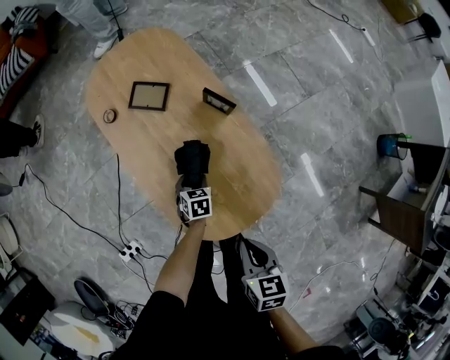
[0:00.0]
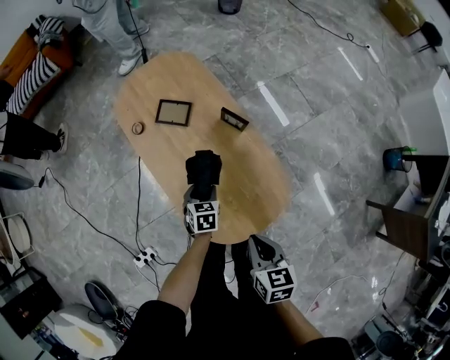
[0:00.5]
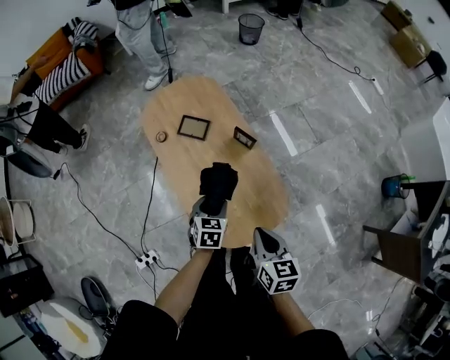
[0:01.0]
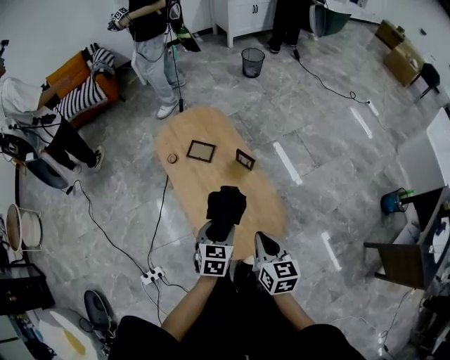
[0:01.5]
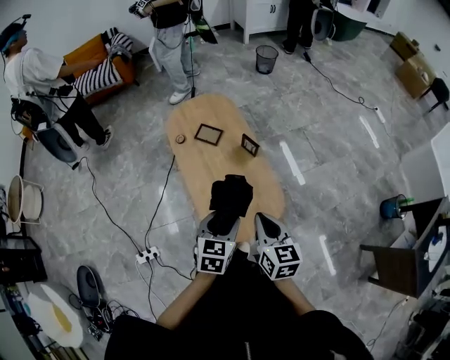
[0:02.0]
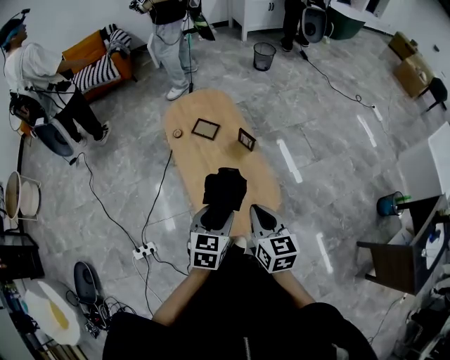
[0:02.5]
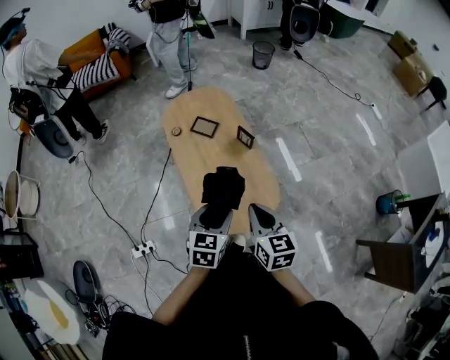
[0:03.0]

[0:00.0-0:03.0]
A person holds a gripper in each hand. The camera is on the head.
0:00.0 to 0:01.5: The right gripper shifts roughly 20 cm upward, and rotates approximately 20 degrees; the left gripper goes roughly 35 cm upward, and turns by roughly 20 degrees.
0:01.5 to 0:03.0: The left gripper travels backward and upward by roughly 10 cm, while the right gripper heads upward, covering approximately 5 cm.

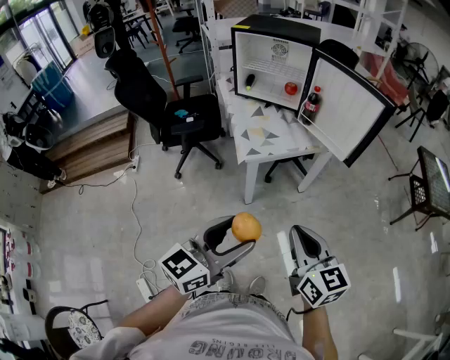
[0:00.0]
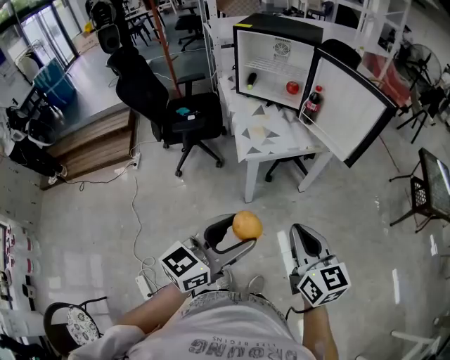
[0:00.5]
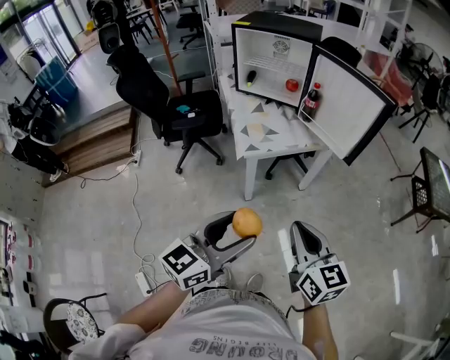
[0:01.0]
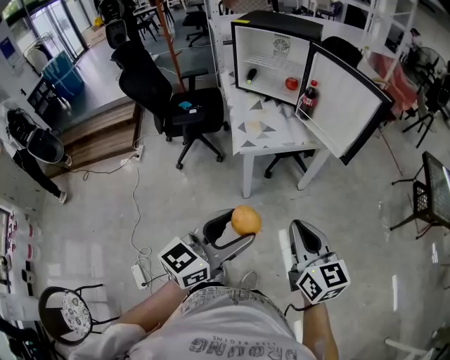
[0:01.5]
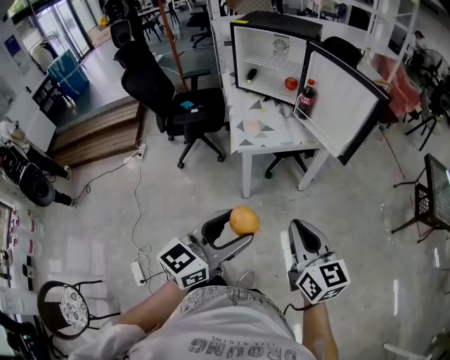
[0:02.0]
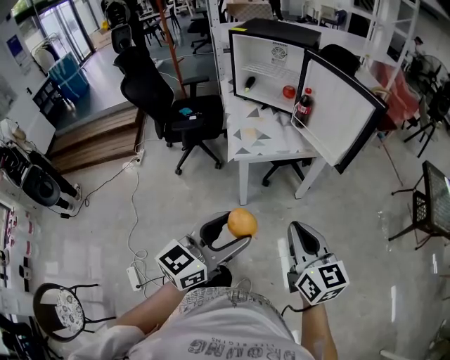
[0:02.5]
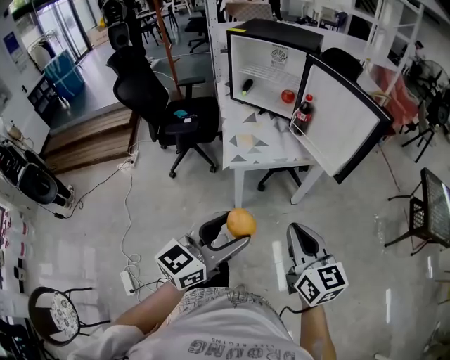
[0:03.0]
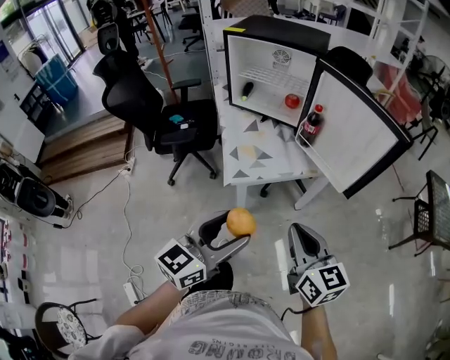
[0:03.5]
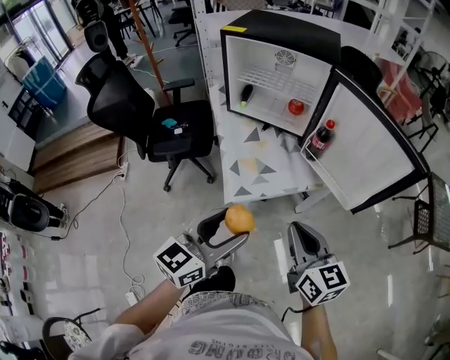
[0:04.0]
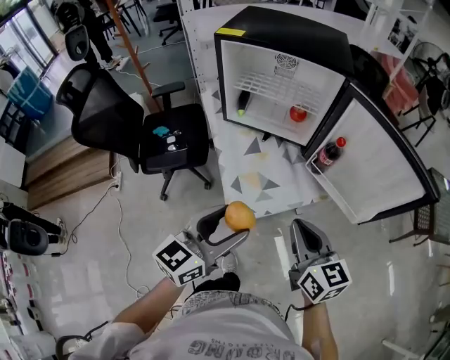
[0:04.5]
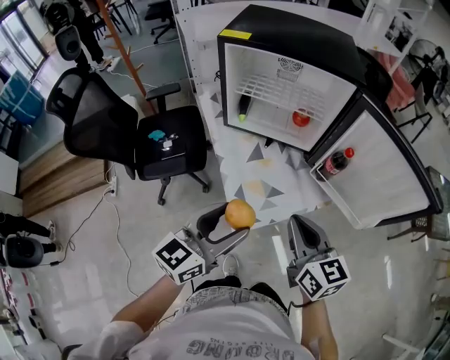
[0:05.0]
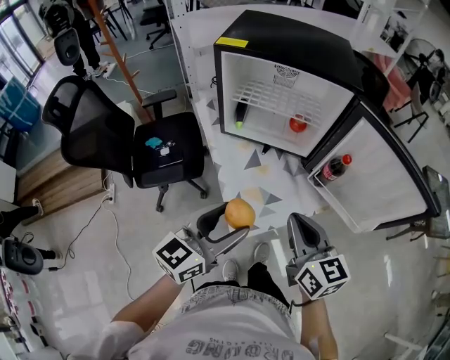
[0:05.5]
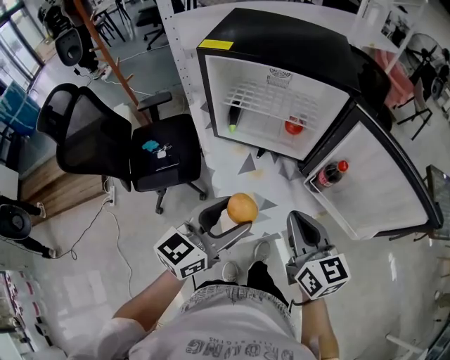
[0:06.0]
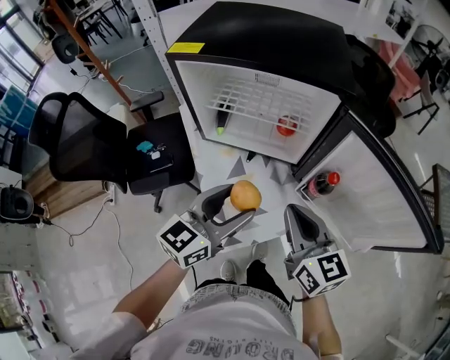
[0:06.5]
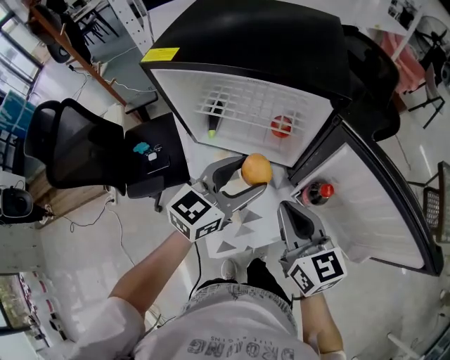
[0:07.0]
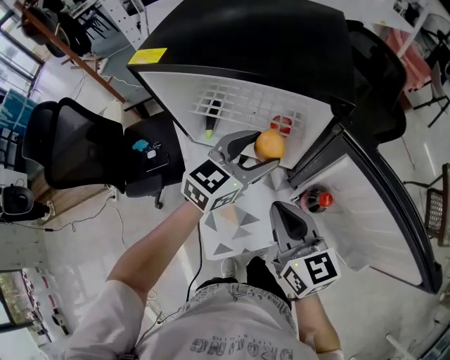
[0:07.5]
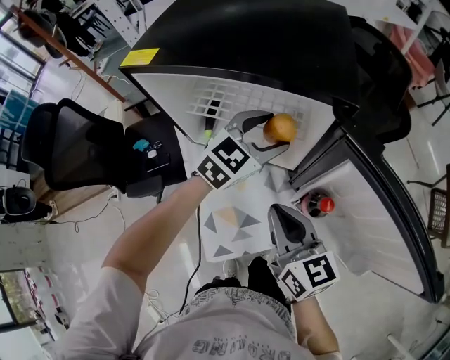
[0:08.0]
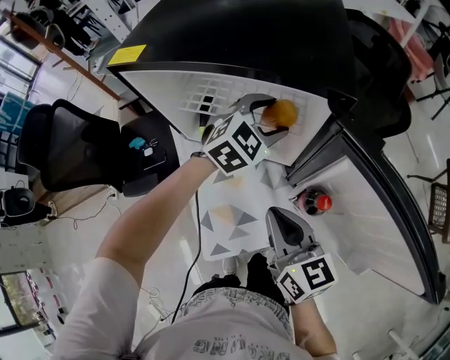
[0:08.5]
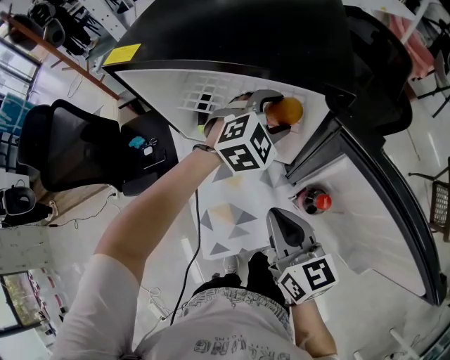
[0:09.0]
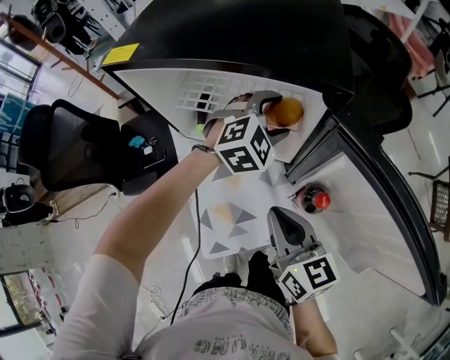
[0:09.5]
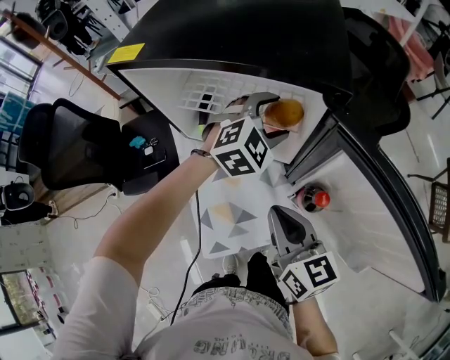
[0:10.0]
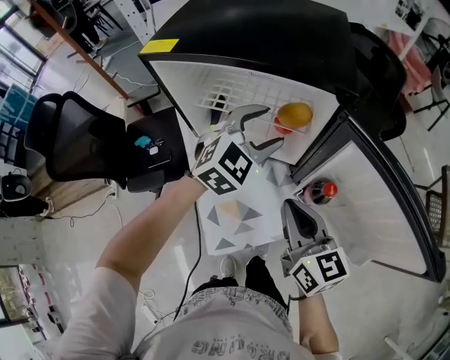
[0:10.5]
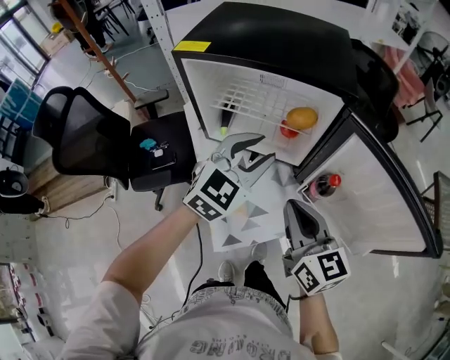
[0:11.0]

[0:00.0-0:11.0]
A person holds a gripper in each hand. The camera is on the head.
0:00.0 to 0:02.0: Both grippers move to the right, some 10 cm.
0:02.0 to 0:03.5: Both grippers move forward, approximately 15 cm.
0:03.5 to 0:05.5: The two grippers go some 30 cm forward and to the left.
0:05.5 to 0:07.5: The left gripper travels forward and to the right by about 35 cm; the right gripper shifts roughly 15 cm forward.
0:07.5 to 0:09.0: The left gripper travels forward and to the right by some 10 cm, and swivels roughly 40 degrees.
0:09.0 to 0:11.0: The left gripper shifts some 20 cm backward, to the left and upward, changes its angle by approximately 30 degrees, and closes; the right gripper heads upward, covering approximately 5 cm.

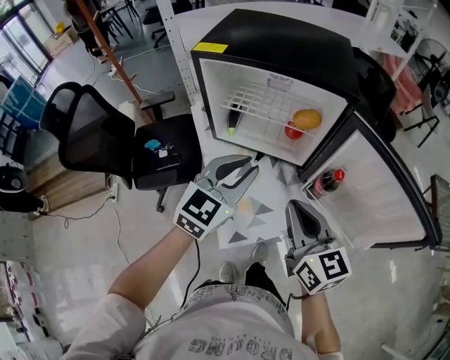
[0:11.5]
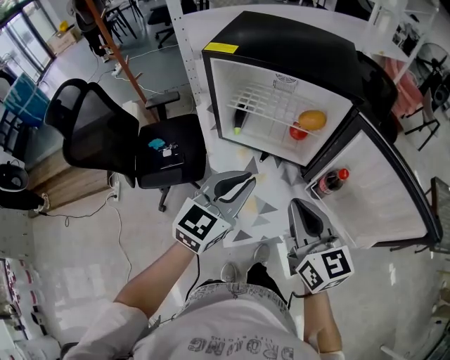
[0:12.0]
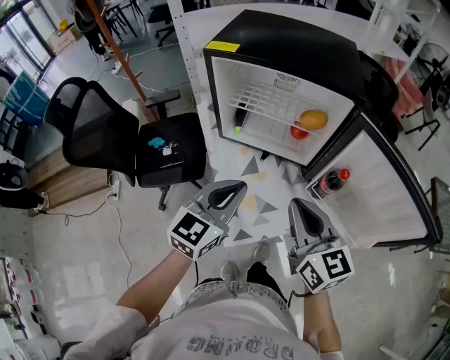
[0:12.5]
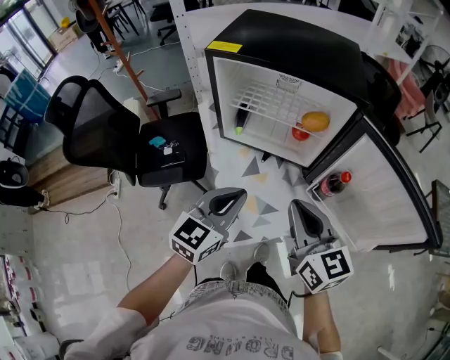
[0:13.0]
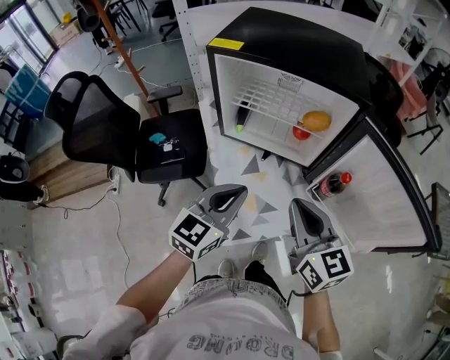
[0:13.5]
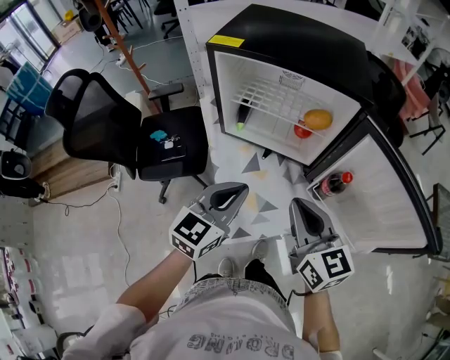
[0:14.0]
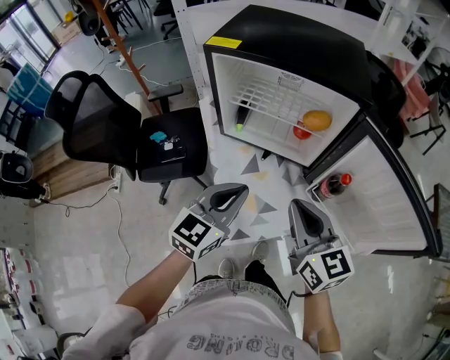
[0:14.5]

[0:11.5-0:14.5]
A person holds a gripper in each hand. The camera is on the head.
0:11.5 to 0:13.0: The left gripper moves backward, some 5 cm.
0:13.0 to 0:14.5: There are only small adjustments of the grippers.

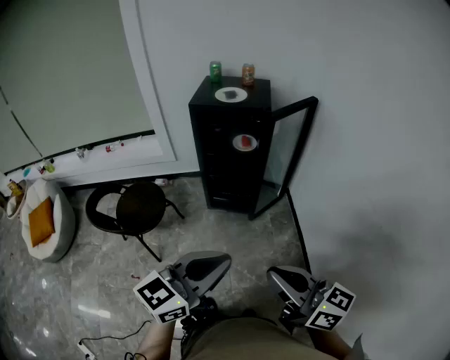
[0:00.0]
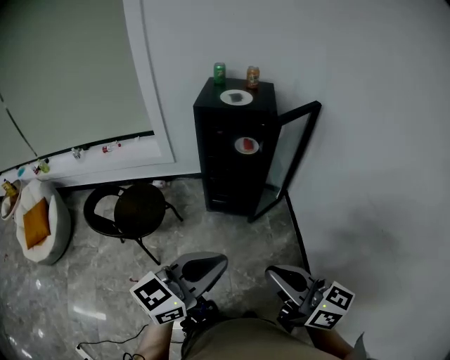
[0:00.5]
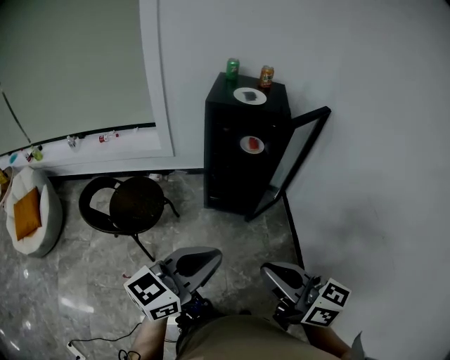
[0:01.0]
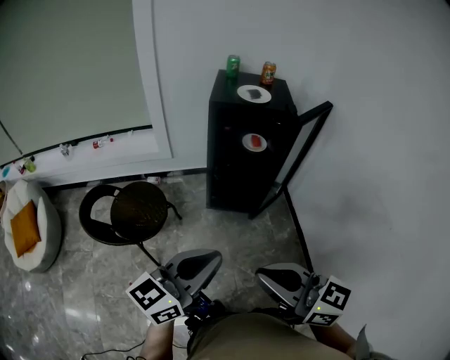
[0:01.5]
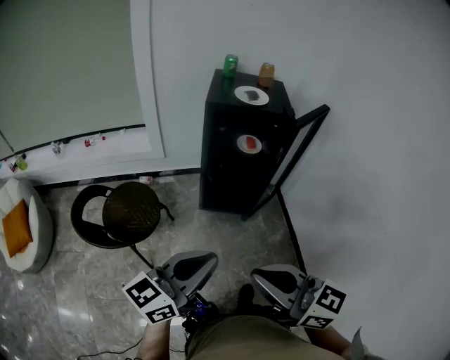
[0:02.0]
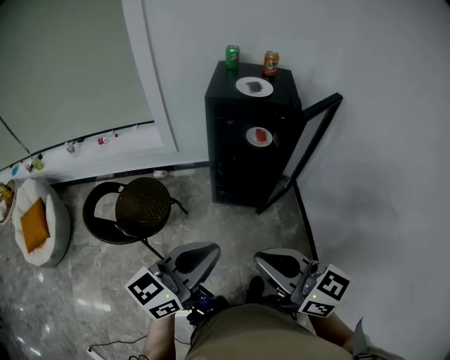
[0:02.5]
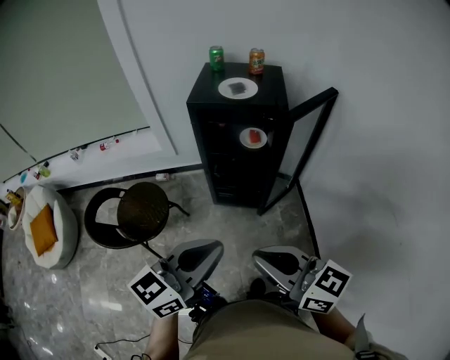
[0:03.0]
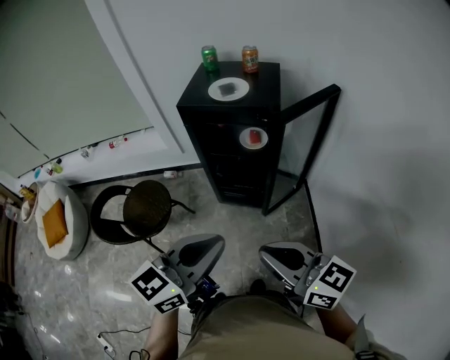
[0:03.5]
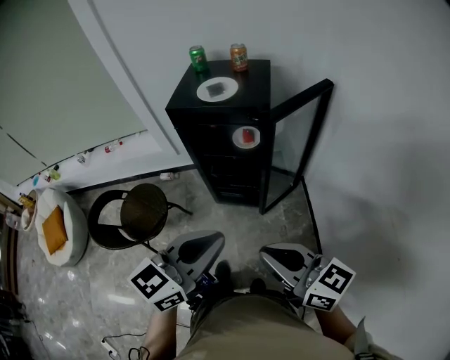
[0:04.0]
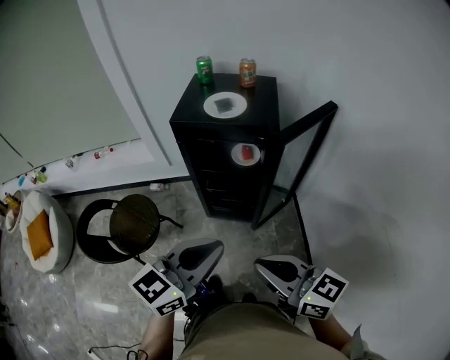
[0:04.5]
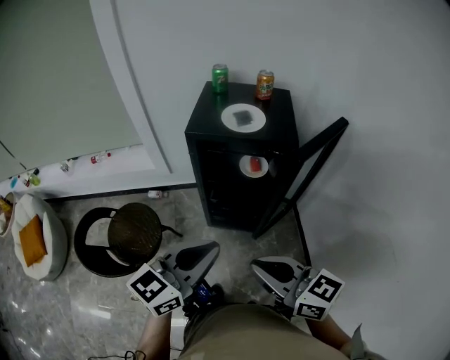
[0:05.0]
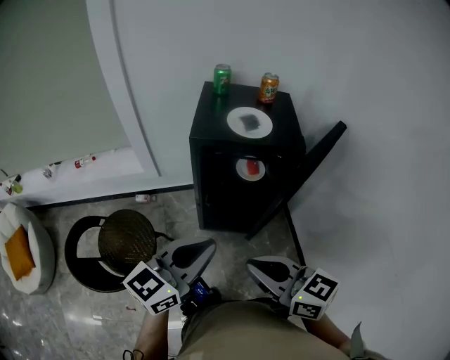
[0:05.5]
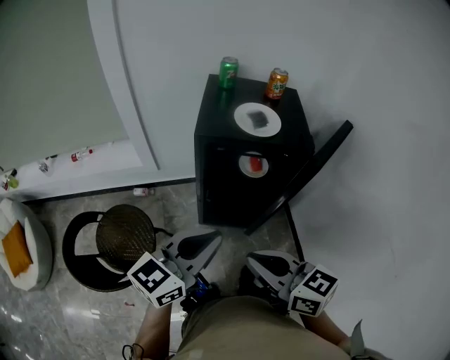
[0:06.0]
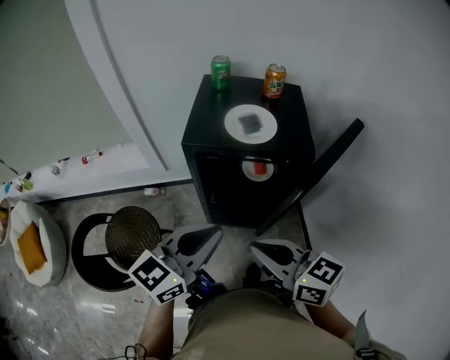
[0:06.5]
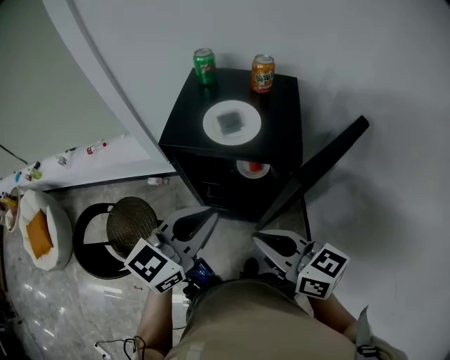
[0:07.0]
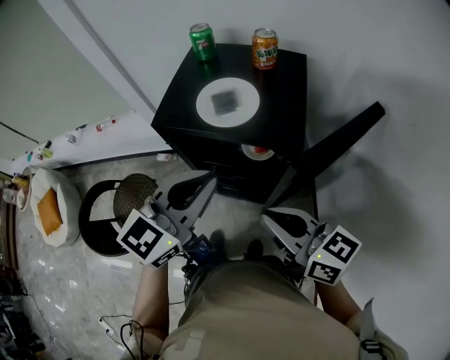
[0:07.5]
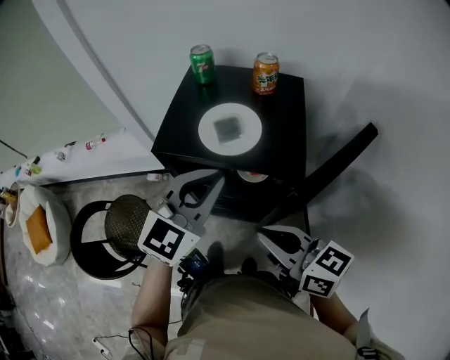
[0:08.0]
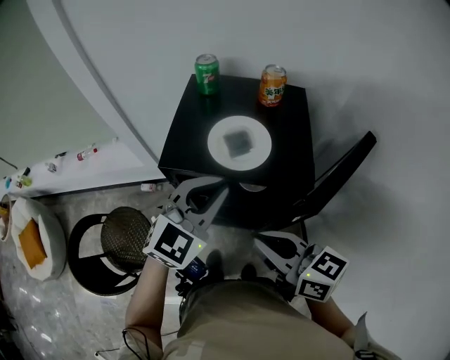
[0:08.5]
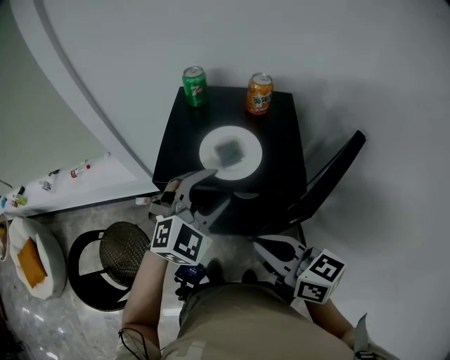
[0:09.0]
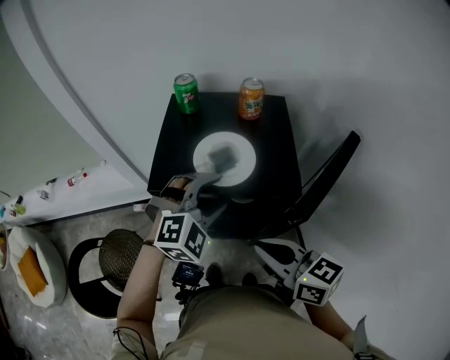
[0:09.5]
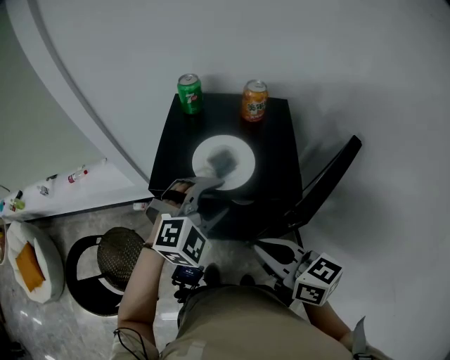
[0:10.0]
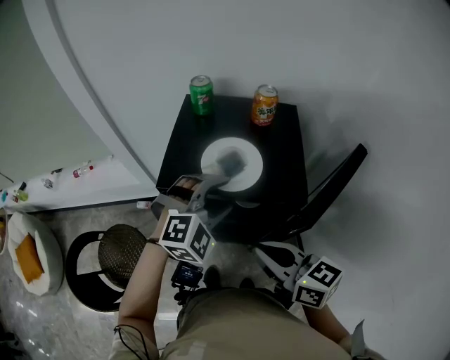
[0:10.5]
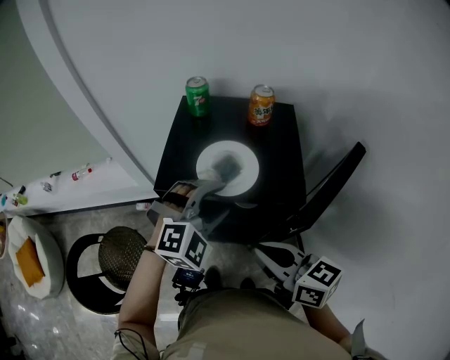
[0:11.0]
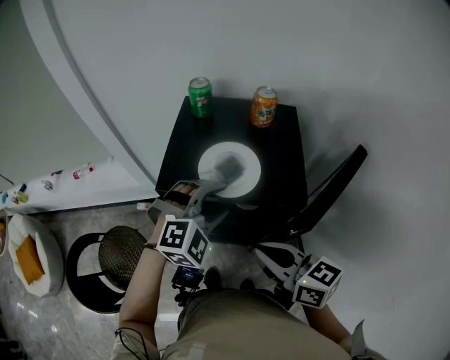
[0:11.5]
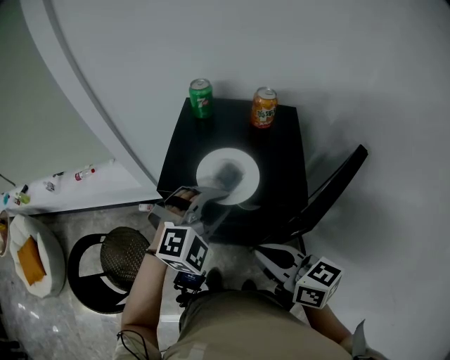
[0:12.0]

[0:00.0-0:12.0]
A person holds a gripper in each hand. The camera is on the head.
0:00.0 to 0:02.0: The left gripper moves to the left and forward, some 20 cm. Meanwhile the right gripper travels to the left by some 20 cm.
0:02.0 to 0:04.0: Both grippers travel together to the right and forward, some 25 cm.
0:04.0 to 0:06.0: Both grippers move to the left and forward, approximately 25 cm.
0:06.0 to 0:08.0: The left gripper travels forward and to the right by some 25 cm, and swivels approximately 30 degrees. Meanwhile the right gripper travels to the right and forward by roughly 20 cm.
0:08.0 to 0:10.0: The left gripper travels downward by some 5 cm, rotates approximately 40 degrees, and opens up.
0:10.0 to 0:12.0: The left gripper closes up.
